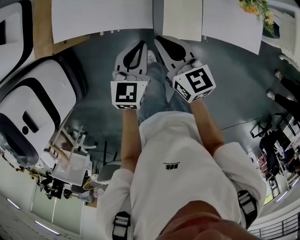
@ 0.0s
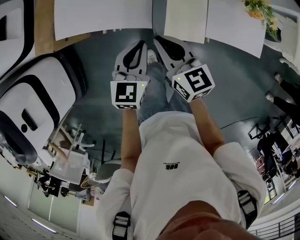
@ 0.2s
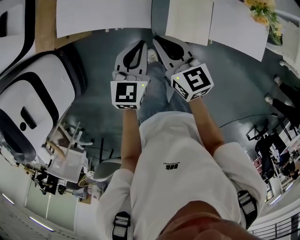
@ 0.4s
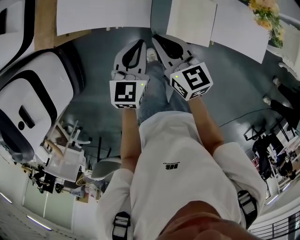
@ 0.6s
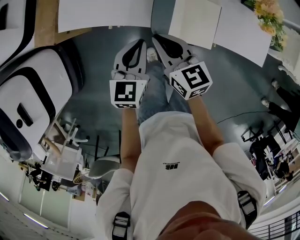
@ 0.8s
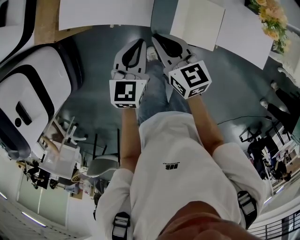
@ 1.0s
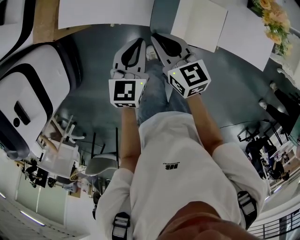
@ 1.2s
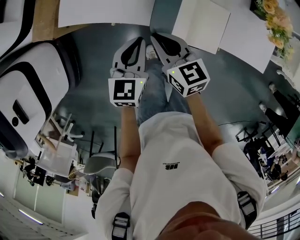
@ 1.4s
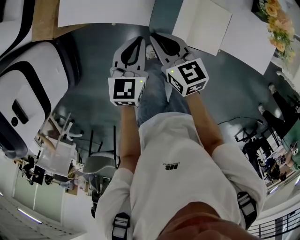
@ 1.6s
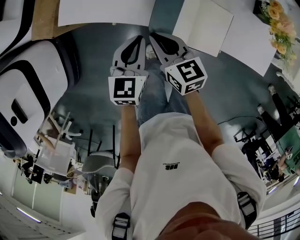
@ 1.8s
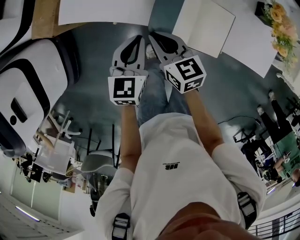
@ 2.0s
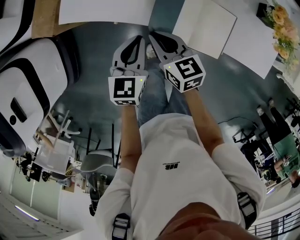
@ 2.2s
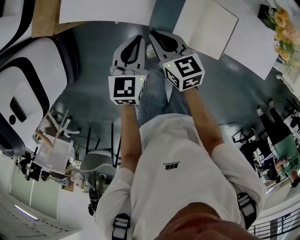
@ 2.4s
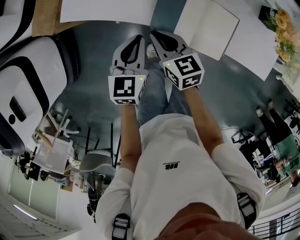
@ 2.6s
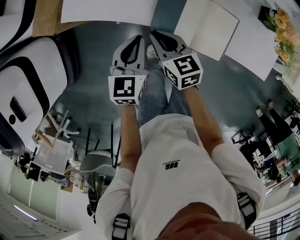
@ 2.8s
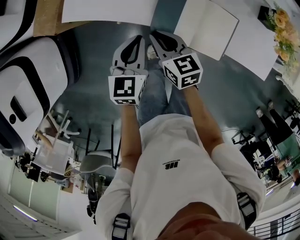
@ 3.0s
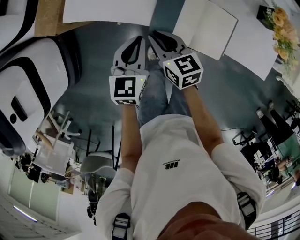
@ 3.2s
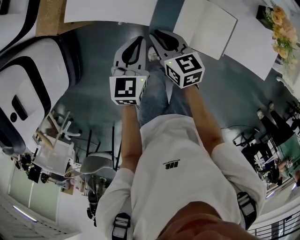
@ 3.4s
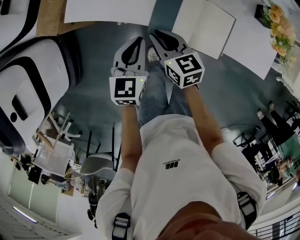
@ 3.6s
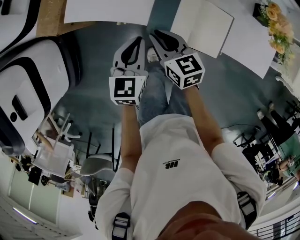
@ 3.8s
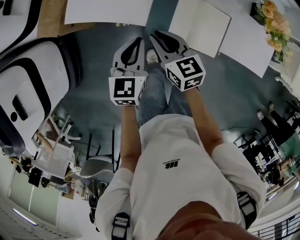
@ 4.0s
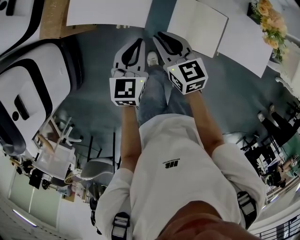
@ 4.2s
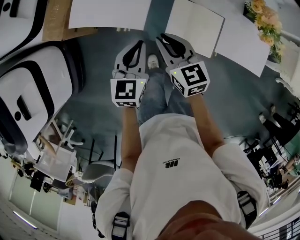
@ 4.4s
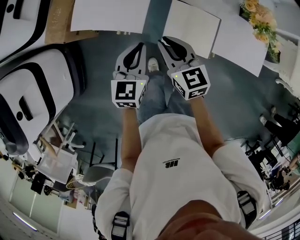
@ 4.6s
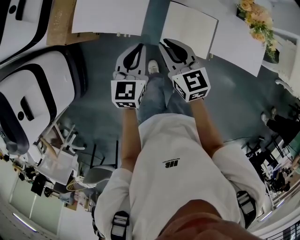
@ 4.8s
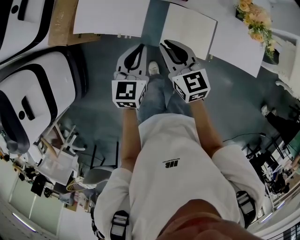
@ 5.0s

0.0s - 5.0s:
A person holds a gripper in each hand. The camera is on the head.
0.0s - 1.6s: The right gripper is displaced to the left and downward by about 10 cm; the left gripper travels to the left by about 10 cm.
1.6s - 3.4s: The grippers make only small movements.
3.4s - 5.0s: The right gripper shifts some 15 cm upward and to the right. The left gripper travels upward by approximately 5 cm.

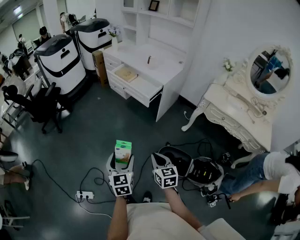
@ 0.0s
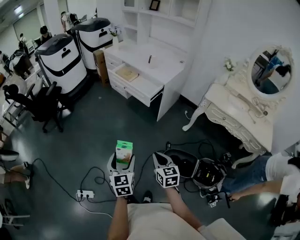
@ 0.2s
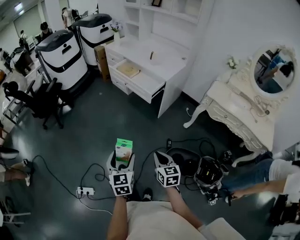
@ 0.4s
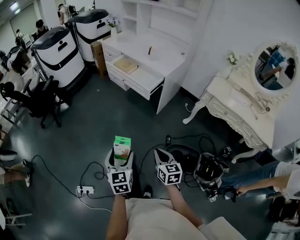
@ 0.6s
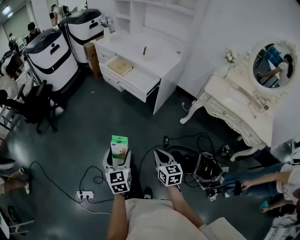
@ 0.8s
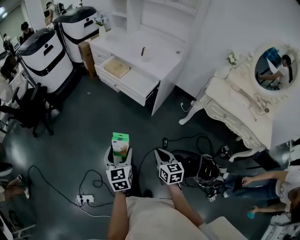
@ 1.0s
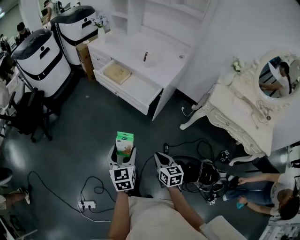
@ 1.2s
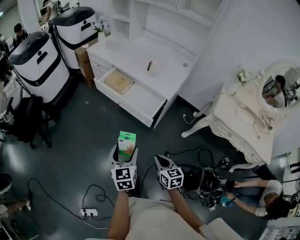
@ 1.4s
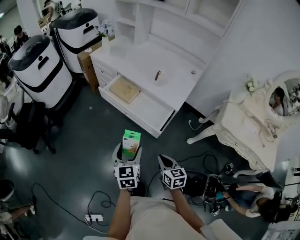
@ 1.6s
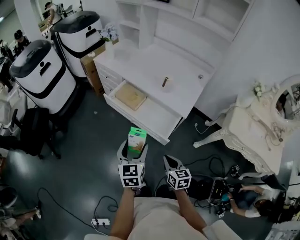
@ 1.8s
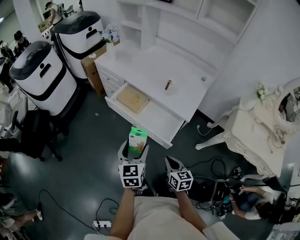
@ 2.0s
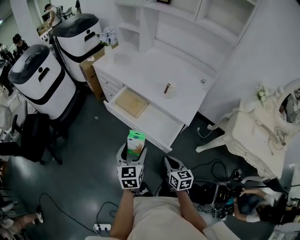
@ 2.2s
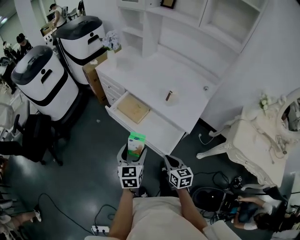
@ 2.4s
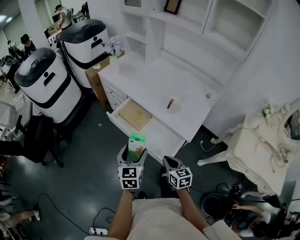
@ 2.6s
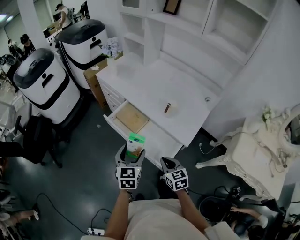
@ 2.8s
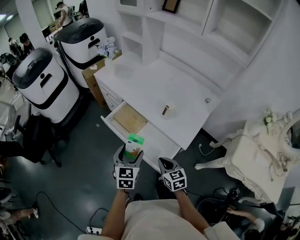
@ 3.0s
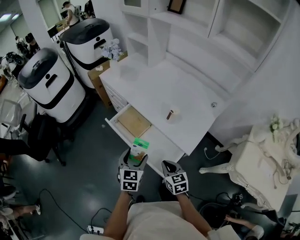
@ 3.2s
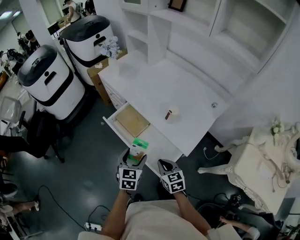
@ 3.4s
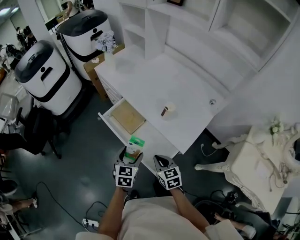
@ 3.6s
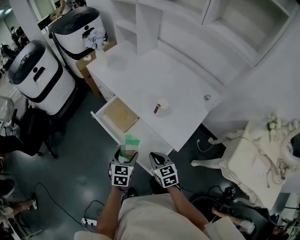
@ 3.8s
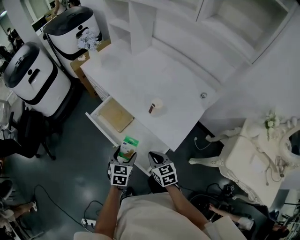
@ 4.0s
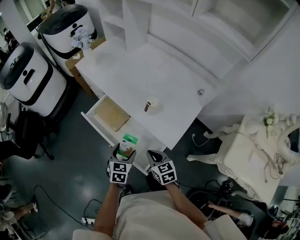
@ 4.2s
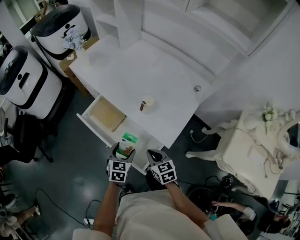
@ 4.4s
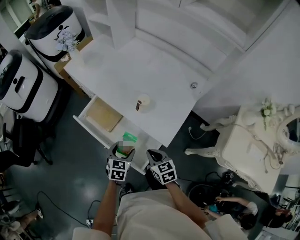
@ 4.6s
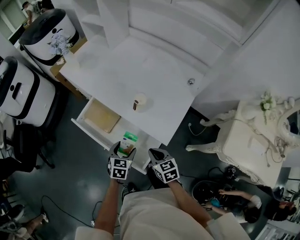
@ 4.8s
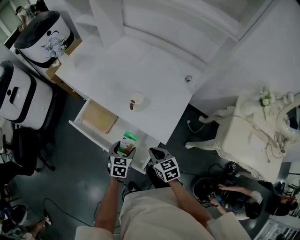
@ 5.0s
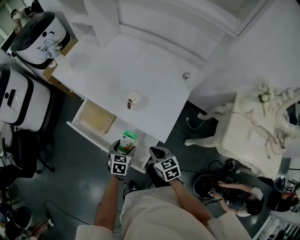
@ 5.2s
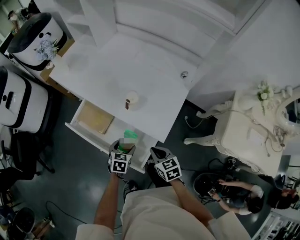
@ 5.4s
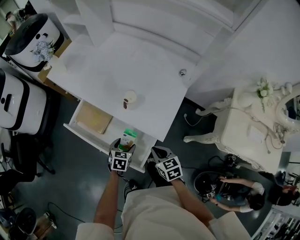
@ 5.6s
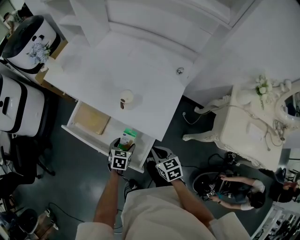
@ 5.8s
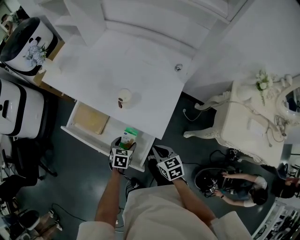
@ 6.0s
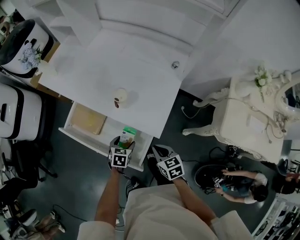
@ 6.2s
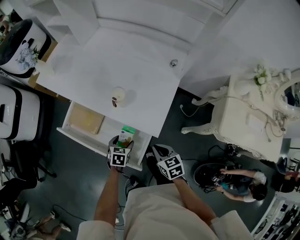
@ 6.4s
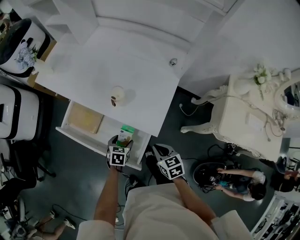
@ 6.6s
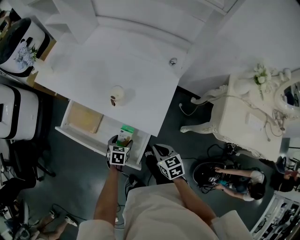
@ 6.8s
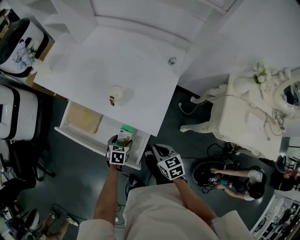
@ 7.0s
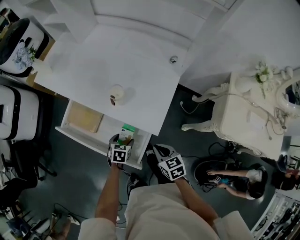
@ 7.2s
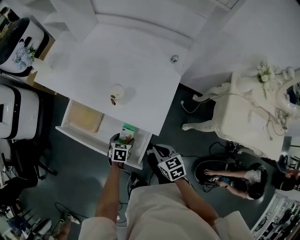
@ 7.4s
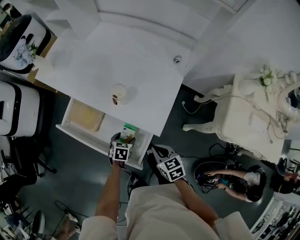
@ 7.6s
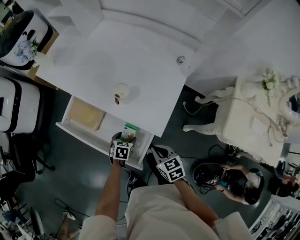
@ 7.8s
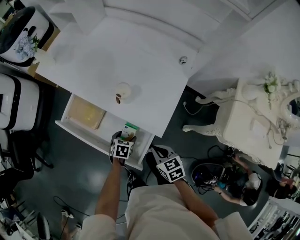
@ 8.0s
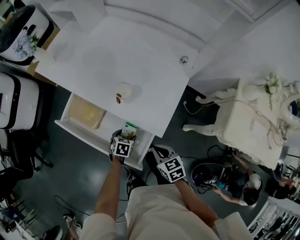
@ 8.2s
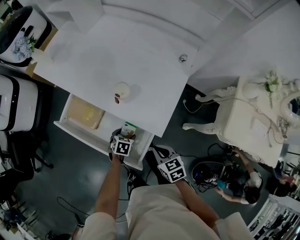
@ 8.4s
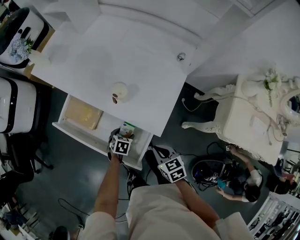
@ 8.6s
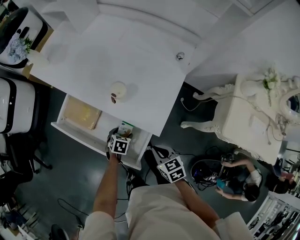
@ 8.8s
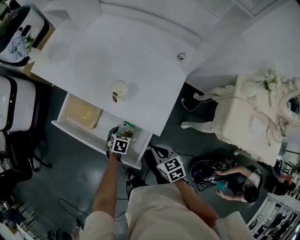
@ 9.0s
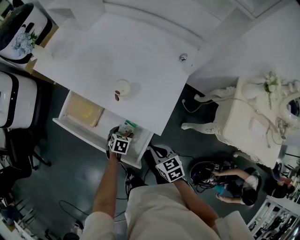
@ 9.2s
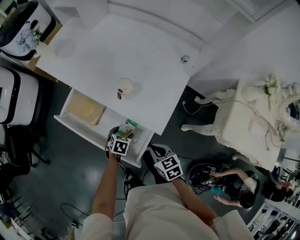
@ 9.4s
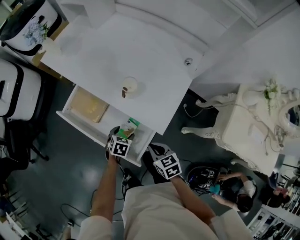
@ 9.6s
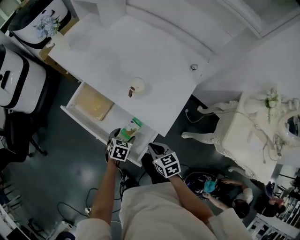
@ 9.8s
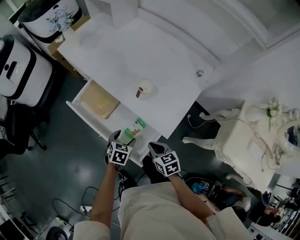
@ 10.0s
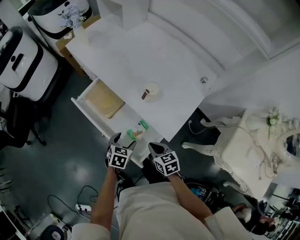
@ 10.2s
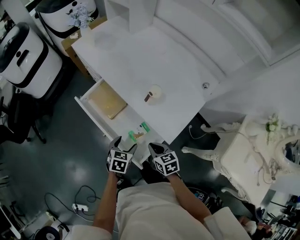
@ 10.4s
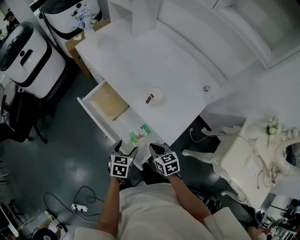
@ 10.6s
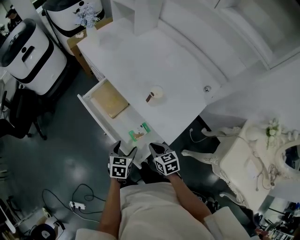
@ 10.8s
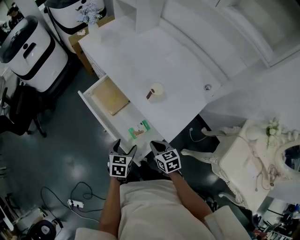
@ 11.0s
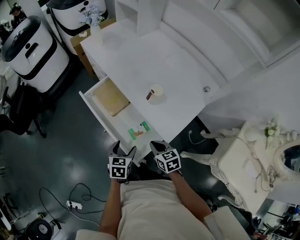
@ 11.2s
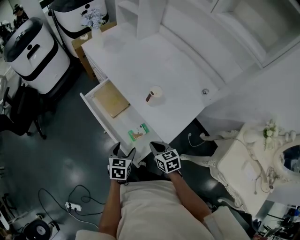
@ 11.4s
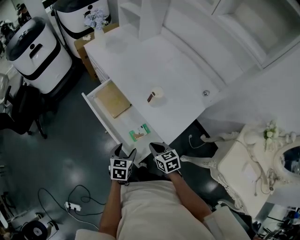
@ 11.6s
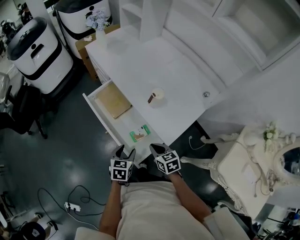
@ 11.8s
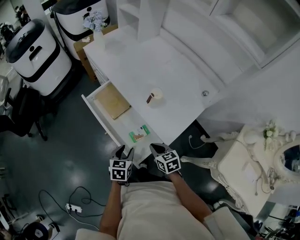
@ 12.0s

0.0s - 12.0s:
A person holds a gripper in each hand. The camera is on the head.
0.0s - 1.6s: The two grippers travel together, forward, roughly 40 cm.
1.6s - 3.0s: The grippers both shift forward by approximately 25 cm.
3.0s - 4.4s: The left gripper is displaced downward and to the right by some 15 cm. Meanwhile the right gripper moves to the right and forward, approximately 10 cm.
4.4s - 6.0s: The right gripper moves to the right, some 10 cm, while the left gripper goes roughly 15 cm downward and to the right.
6.0s - 7.6s: The left gripper travels downward by approximately 5 cm.
7.6s - 9.0s: The grippers make only small movements.
9.0s - 10.4s: The left gripper heads upward, to the left and backward, covering about 15 cm, and swivels about 20 degrees. The right gripper heads to the left, covering approximately 10 cm.
10.4s - 12.0s: The left gripper moves some 5 cm, and closes up.

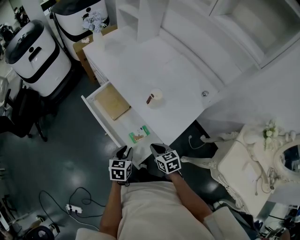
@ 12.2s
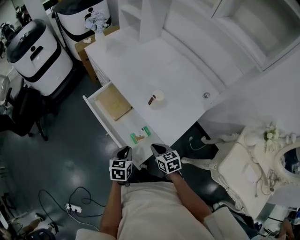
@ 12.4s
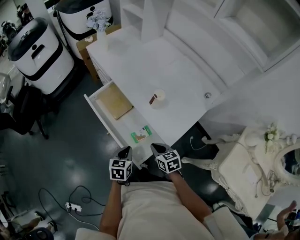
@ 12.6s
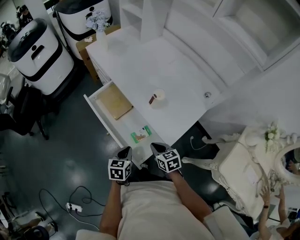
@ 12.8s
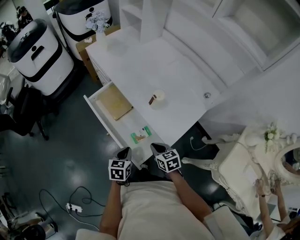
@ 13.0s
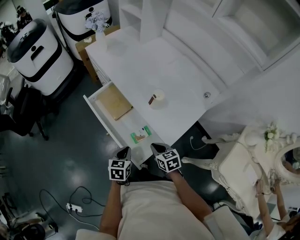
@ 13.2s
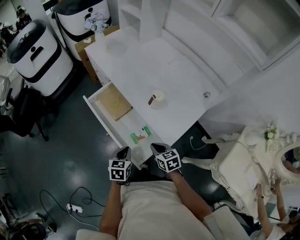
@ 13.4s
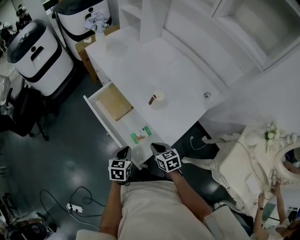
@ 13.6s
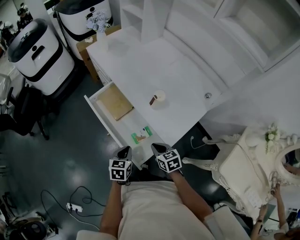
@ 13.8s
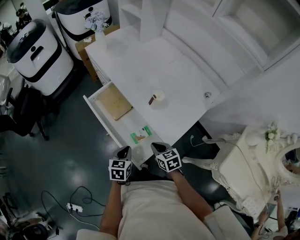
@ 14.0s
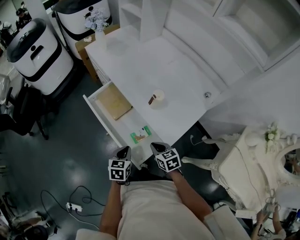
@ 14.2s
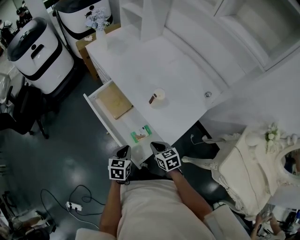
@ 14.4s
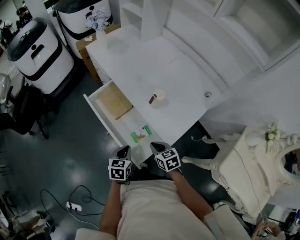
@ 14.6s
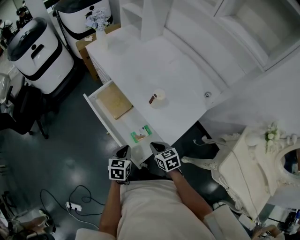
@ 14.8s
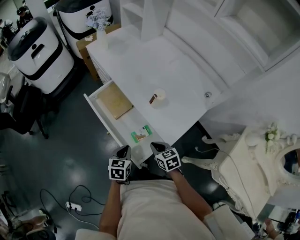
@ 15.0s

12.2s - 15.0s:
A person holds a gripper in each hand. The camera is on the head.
12.2s - 13.6s: Both grippers stay put.
13.6s - 15.0s: Both grippers stay about where they are.

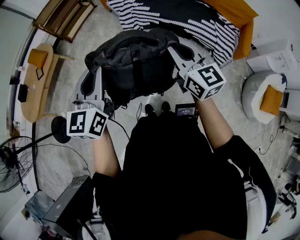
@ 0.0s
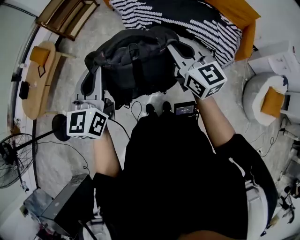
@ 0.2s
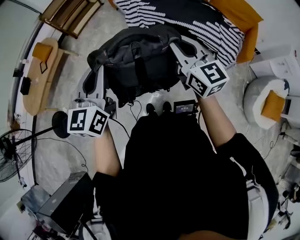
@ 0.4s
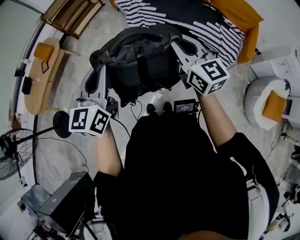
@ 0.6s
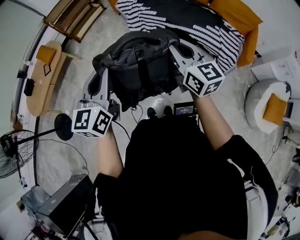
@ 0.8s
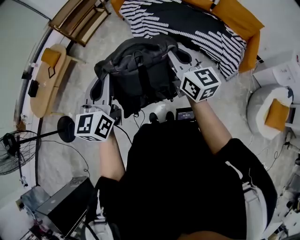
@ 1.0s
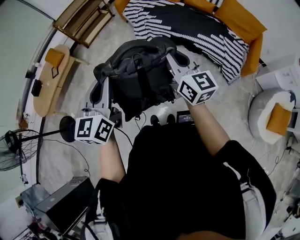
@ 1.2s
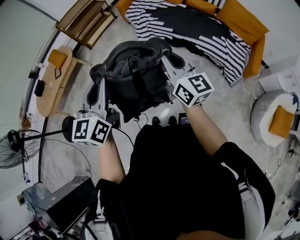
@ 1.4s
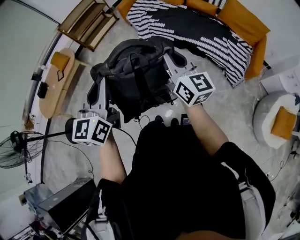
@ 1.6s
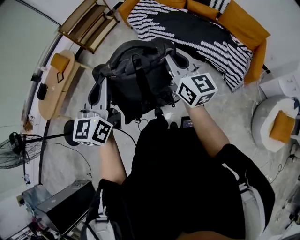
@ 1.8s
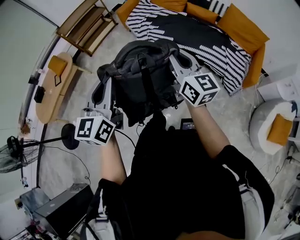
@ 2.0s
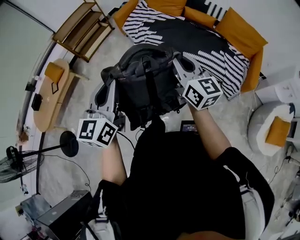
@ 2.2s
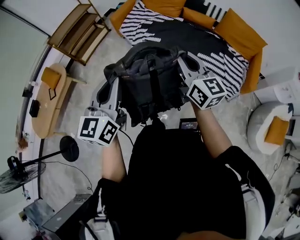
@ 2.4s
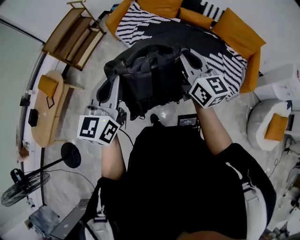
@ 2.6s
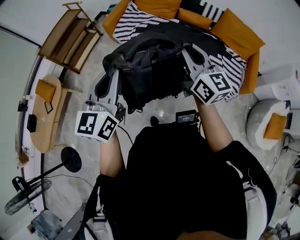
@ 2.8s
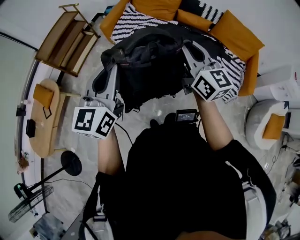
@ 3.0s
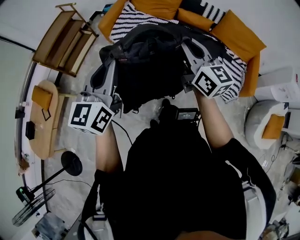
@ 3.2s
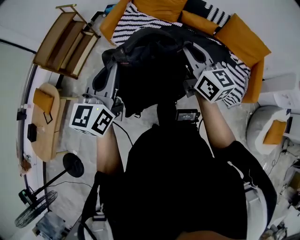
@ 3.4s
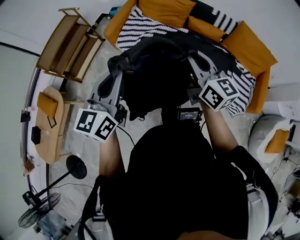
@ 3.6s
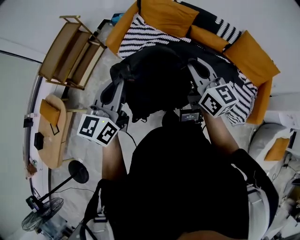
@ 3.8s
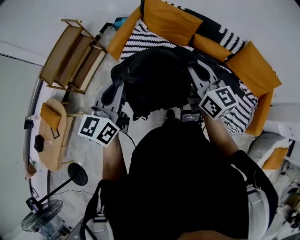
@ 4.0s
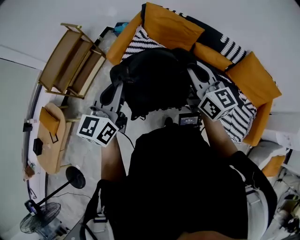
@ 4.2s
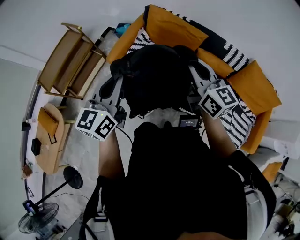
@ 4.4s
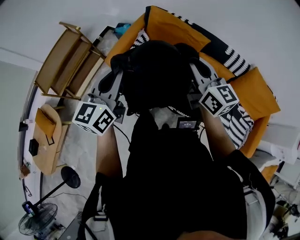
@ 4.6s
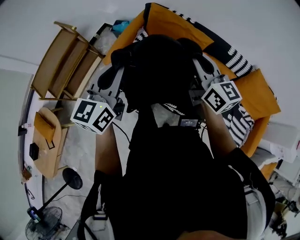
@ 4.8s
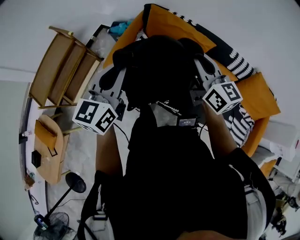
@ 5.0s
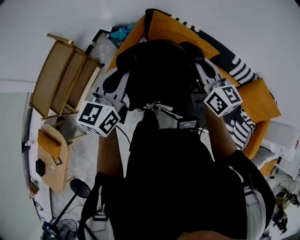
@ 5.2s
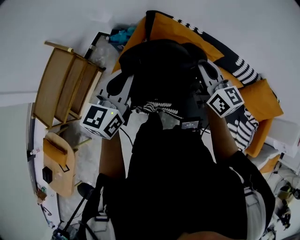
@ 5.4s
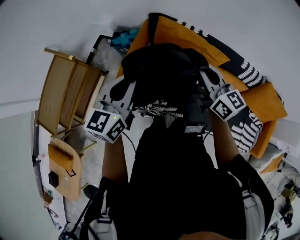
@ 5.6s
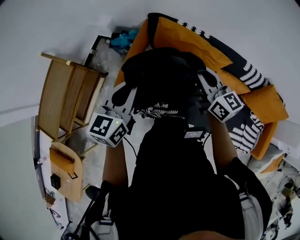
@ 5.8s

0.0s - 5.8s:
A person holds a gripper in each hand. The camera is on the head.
0.0s - 1.4s: The left gripper ends up about 5 cm from where it was.
1.4s - 2.8s: The grippers both shift forward by about 25 cm.
2.8s - 4.4s: Both grippers travel together forward, some 40 cm.
4.4s - 5.8s: Both grippers travel together forward, some 35 cm.
